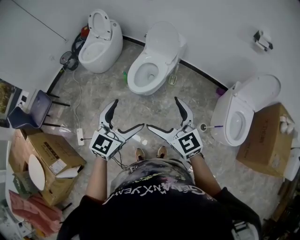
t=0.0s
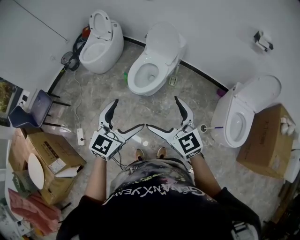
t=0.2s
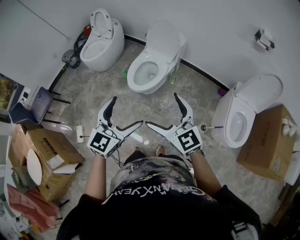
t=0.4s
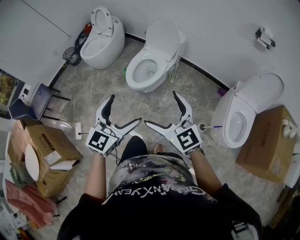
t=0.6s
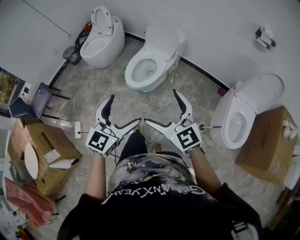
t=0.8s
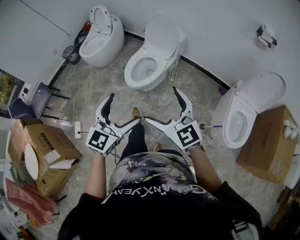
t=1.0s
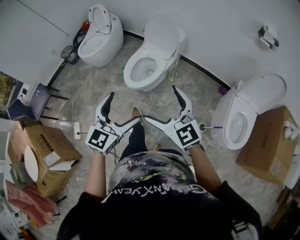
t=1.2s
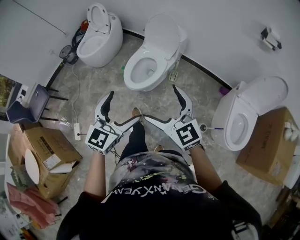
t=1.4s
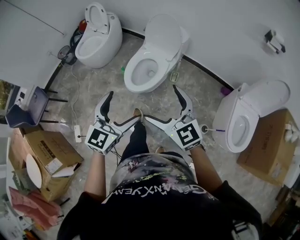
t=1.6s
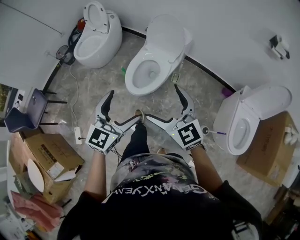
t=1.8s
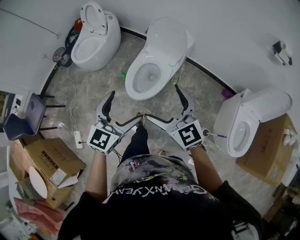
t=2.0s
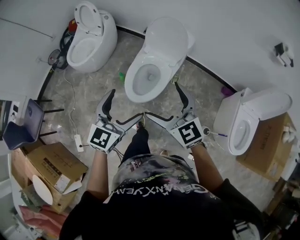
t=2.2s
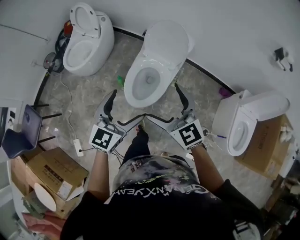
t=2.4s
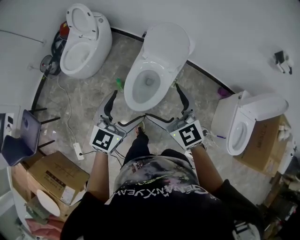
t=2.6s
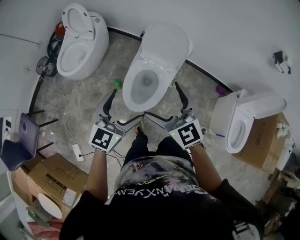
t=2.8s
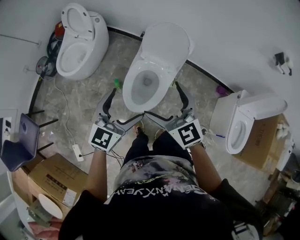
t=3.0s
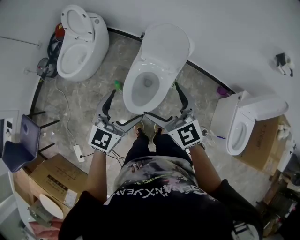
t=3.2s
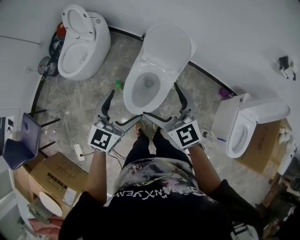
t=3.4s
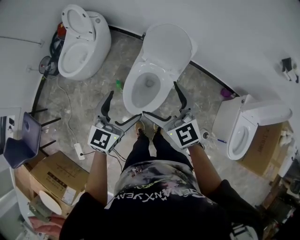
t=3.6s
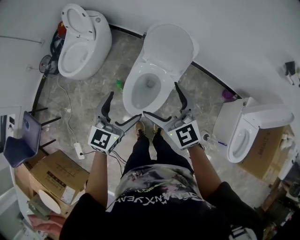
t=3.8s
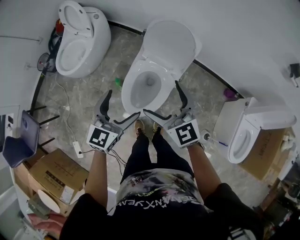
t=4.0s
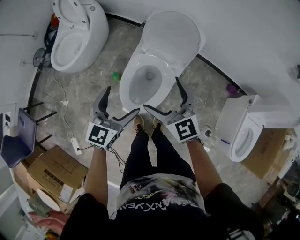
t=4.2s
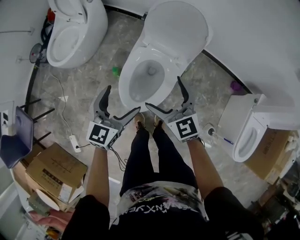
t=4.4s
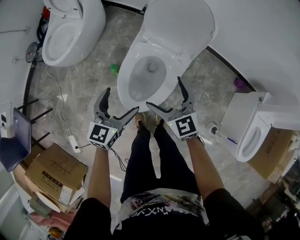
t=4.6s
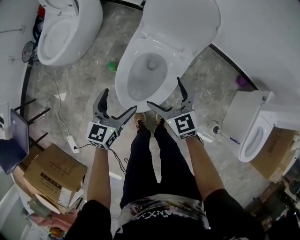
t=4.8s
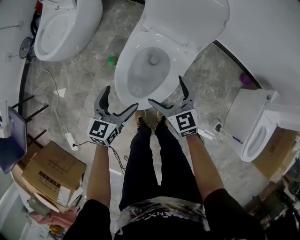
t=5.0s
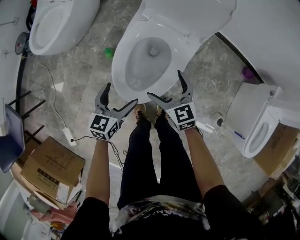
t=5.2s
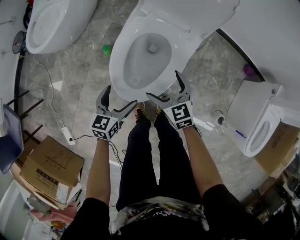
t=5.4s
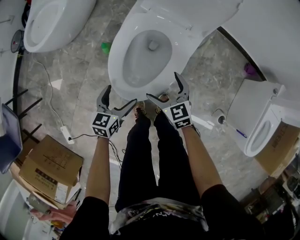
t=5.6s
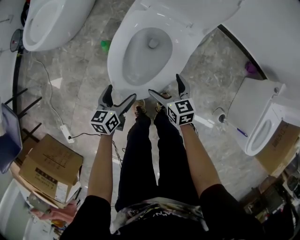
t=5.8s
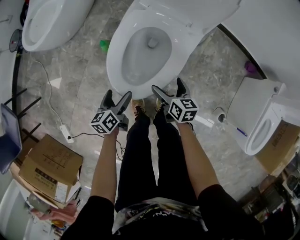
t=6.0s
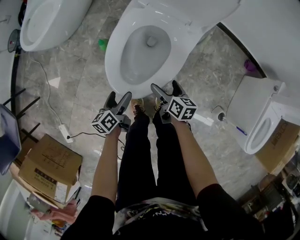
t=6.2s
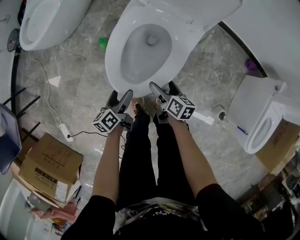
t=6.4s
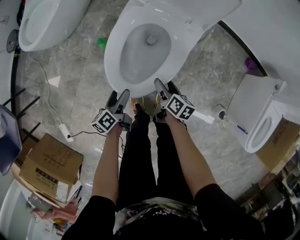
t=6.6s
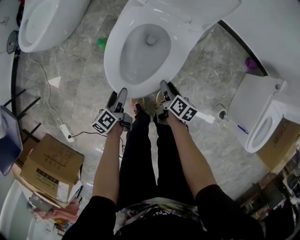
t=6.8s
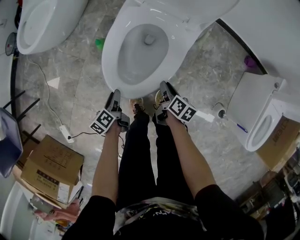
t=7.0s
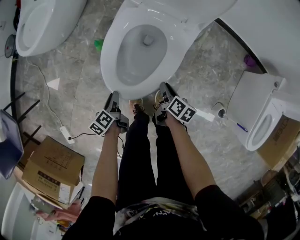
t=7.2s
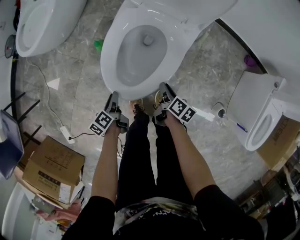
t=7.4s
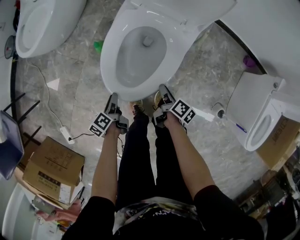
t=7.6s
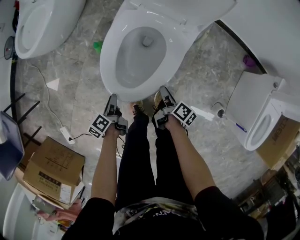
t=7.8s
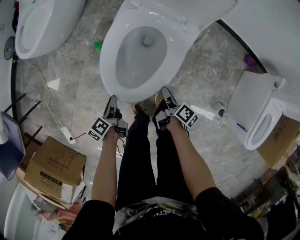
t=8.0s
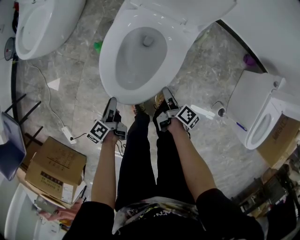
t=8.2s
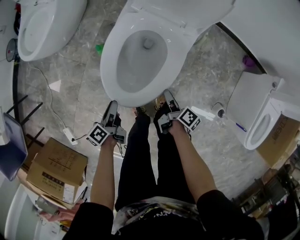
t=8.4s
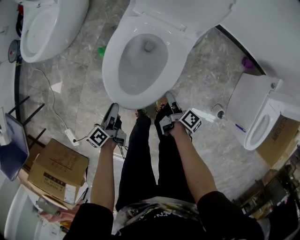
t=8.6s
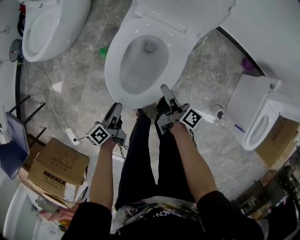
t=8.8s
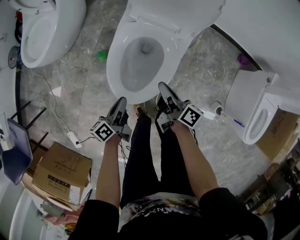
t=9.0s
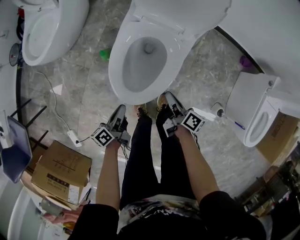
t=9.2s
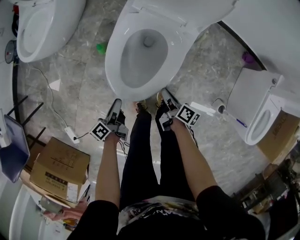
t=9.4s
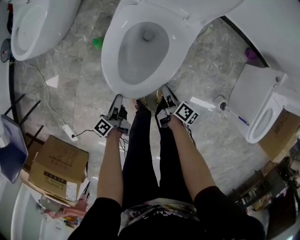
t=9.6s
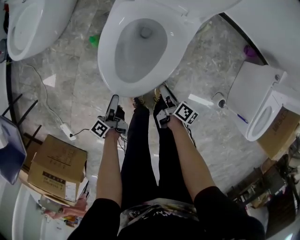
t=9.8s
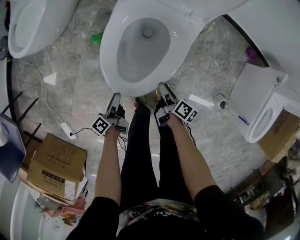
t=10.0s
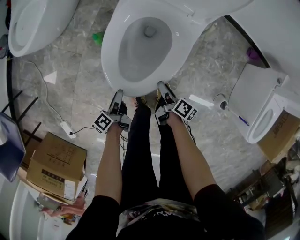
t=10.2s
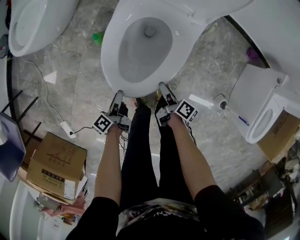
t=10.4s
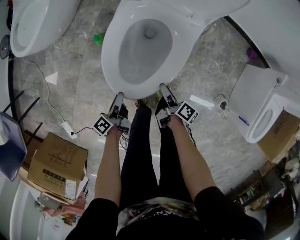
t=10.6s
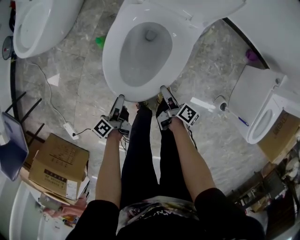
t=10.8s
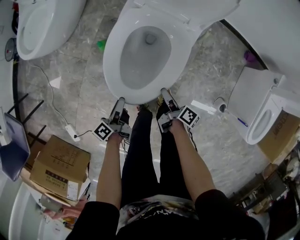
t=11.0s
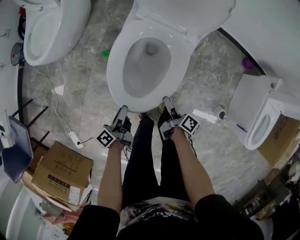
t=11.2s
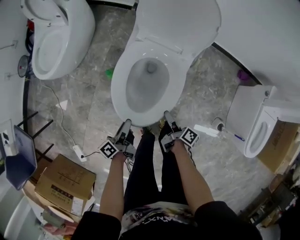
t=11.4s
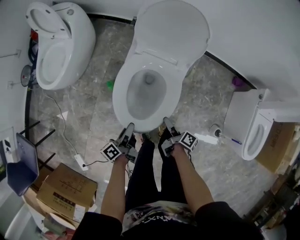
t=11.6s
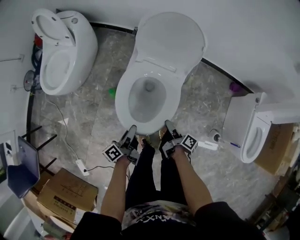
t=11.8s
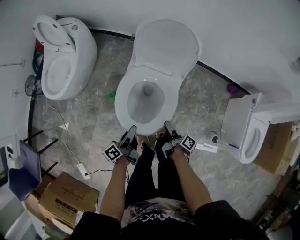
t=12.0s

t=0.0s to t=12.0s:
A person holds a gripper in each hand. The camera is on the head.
t=0.0s to t=1.6s: The two grippers go about 10 cm forward.
t=1.6s to t=3.0s: Both grippers move forward, about 30 cm.
t=3.0s to t=4.4s: Both grippers move downward and forward, about 20 cm.
t=4.4s to t=6.0s: Both grippers travel together downward, about 35 cm. The left gripper rotates around the line of its fingers by roughly 50 degrees, counterclockwise from behind, while the right gripper twists about 40 degrees clockwise, seen from behind.
t=6.0s to t=7.6s: The left gripper changes place by some 5 cm, rotates approximately 30 degrees, and closes up. The right gripper moves about 5 cm, twists about 50 degrees clockwise, seen from behind, and closes.
t=7.6s to t=9.0s: The grippers both shift upward by some 15 cm. The right gripper turns by some 30 degrees. The left gripper swivels roughly 30 degrees.
t=9.0s to t=10.4s: The right gripper travels downward and backward by some 20 cm, and turns by roughly 20 degrees, while the left gripper moves downward, some 15 cm, and rotates about 20 degrees.
t=10.4s to t=12.0s: The two grippers go about 20 cm upward. The left gripper turns by about 20 degrees.

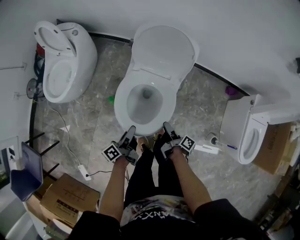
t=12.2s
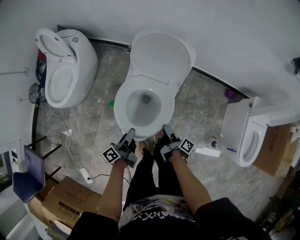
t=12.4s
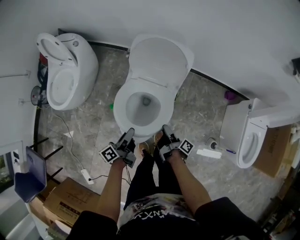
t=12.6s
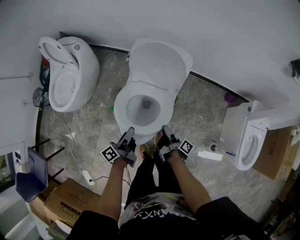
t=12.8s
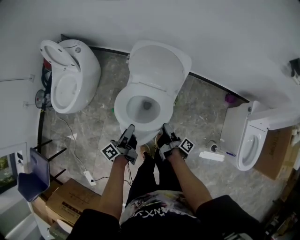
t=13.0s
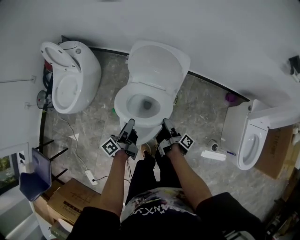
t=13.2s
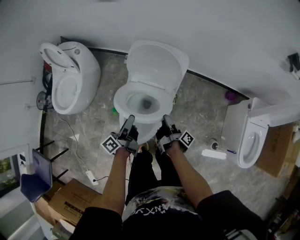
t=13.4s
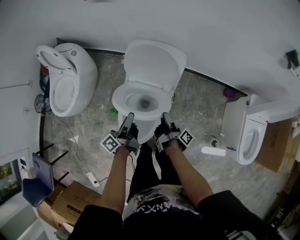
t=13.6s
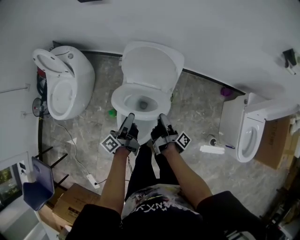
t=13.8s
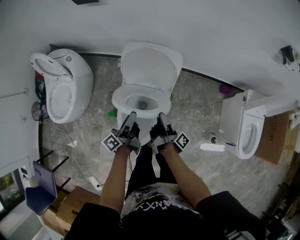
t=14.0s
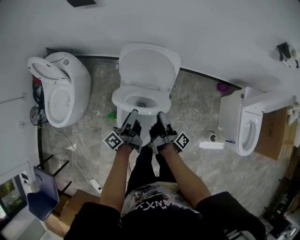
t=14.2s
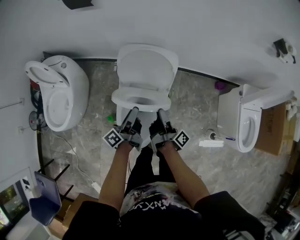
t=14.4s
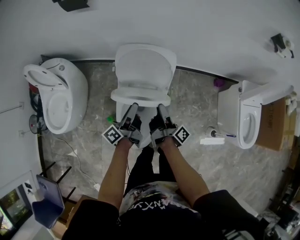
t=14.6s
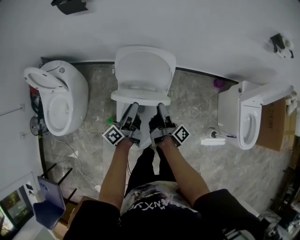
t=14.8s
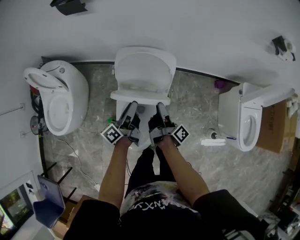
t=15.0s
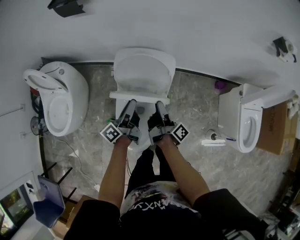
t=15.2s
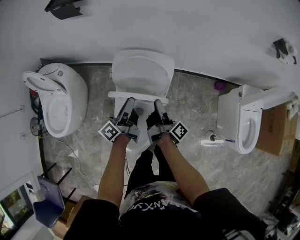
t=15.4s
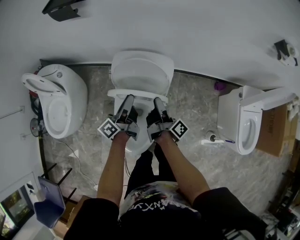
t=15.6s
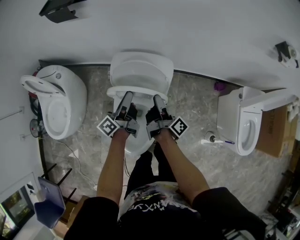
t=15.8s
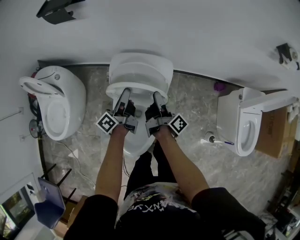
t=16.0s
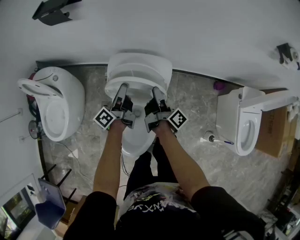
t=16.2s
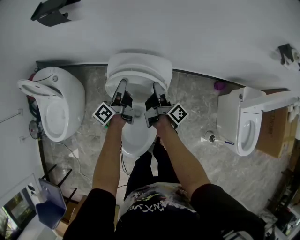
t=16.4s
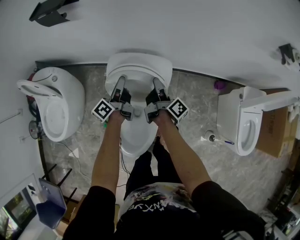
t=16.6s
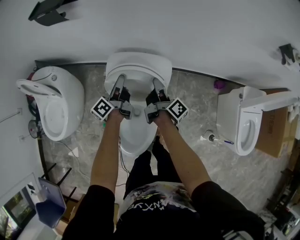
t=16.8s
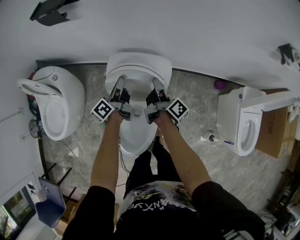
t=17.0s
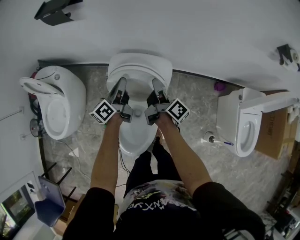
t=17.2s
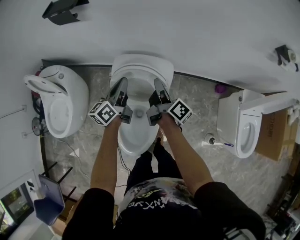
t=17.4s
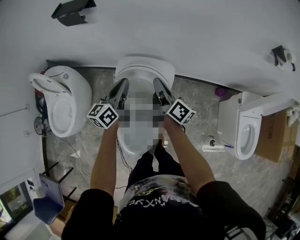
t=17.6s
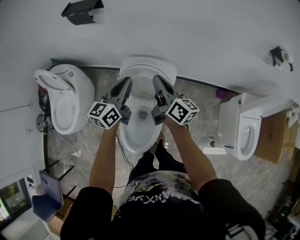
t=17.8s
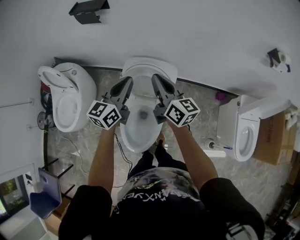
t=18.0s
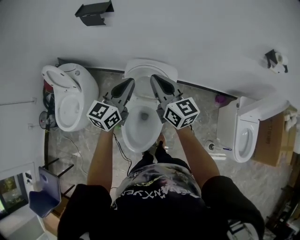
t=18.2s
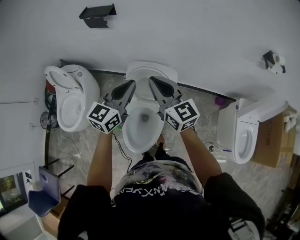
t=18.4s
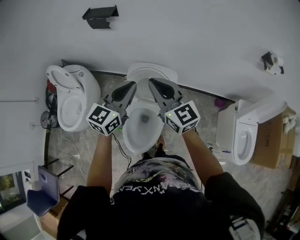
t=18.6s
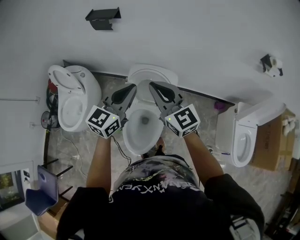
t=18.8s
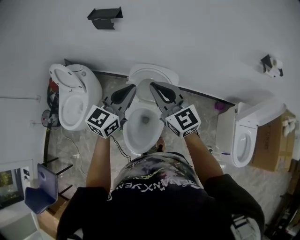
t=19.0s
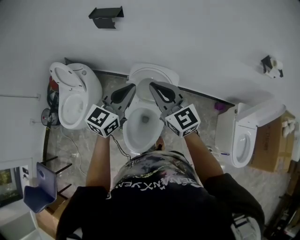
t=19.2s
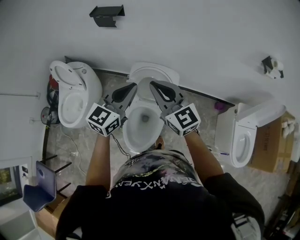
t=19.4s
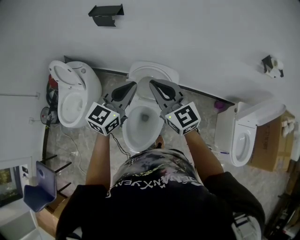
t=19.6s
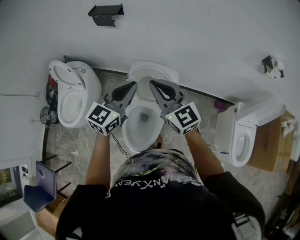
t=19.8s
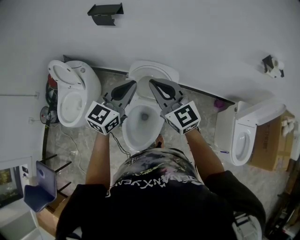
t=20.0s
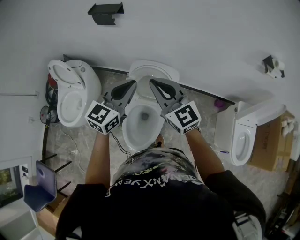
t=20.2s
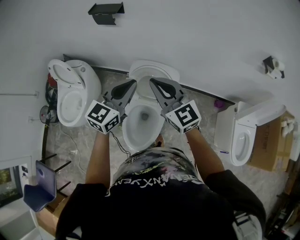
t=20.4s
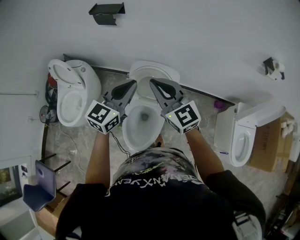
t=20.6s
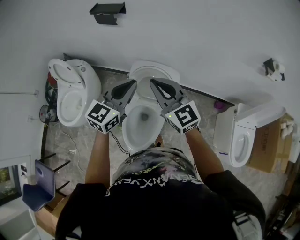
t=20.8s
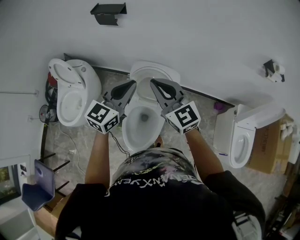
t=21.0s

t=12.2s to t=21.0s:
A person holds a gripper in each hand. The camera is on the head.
t=12.2s to t=13.6s: Both grippers move forward and upward, roughly 15 cm. The right gripper changes its angle by roughly 20 degrees.
t=13.6s to t=15.2s: The right gripper is displaced forward and upward by roughly 15 cm; the left gripper travels forward by roughly 10 cm.
t=15.2s to t=16.6s: Both grippers move forward, some 15 cm.
t=16.6s to t=18.0s: The left gripper is displaced upward and backward by about 25 cm, and twists roughly 50 degrees clockwise, seen from behind; the right gripper moves upward, roughly 20 cm, and rolls counterclockwise, seen from behind, by some 50 degrees.
t=18.0s to t=19.6s: The two grippers go about 15 cm upward and backward. The right gripper changes its angle by about 40 degrees.
t=19.6s to t=21.0s: The grippers make only small movements.

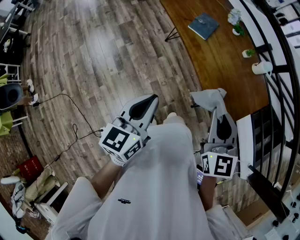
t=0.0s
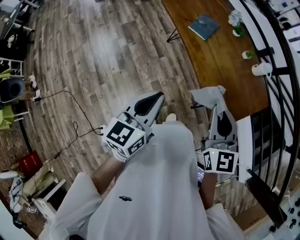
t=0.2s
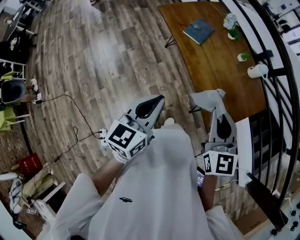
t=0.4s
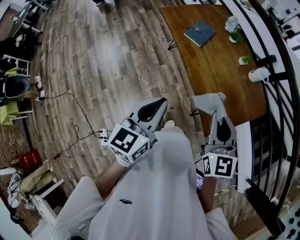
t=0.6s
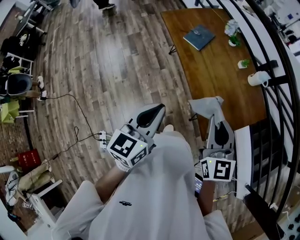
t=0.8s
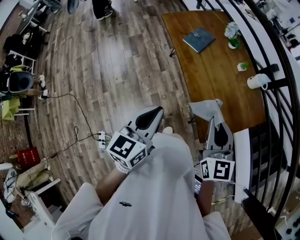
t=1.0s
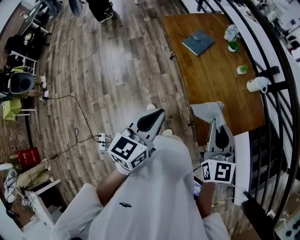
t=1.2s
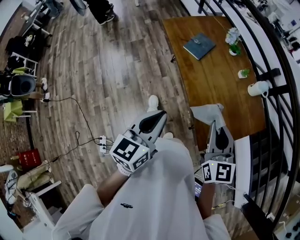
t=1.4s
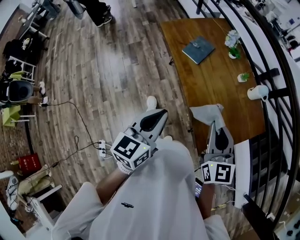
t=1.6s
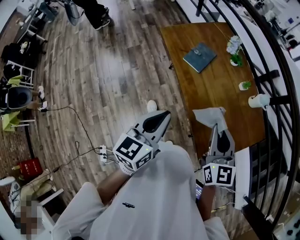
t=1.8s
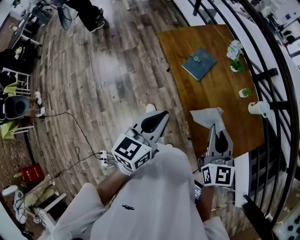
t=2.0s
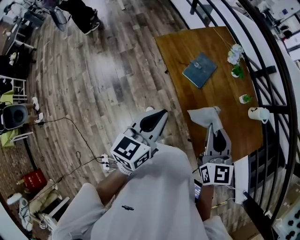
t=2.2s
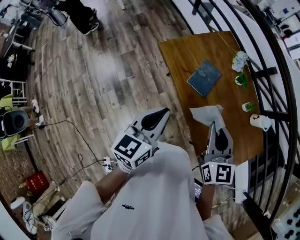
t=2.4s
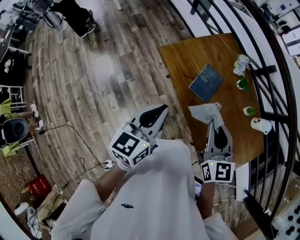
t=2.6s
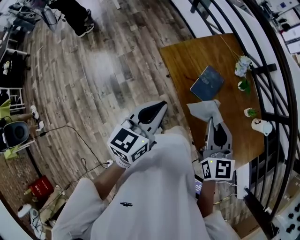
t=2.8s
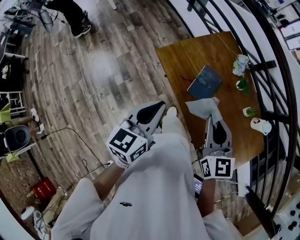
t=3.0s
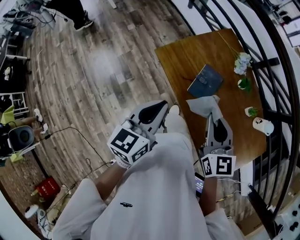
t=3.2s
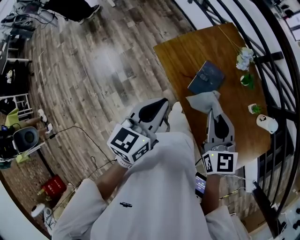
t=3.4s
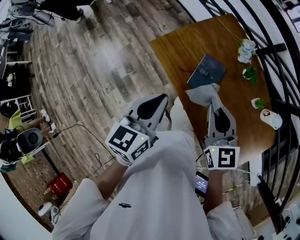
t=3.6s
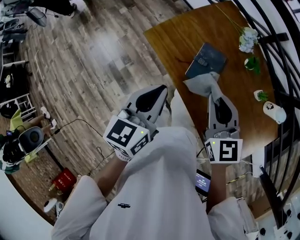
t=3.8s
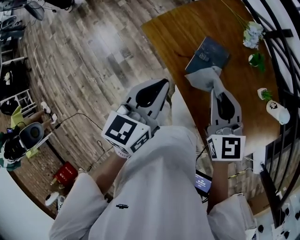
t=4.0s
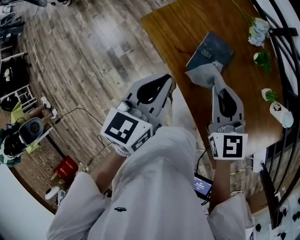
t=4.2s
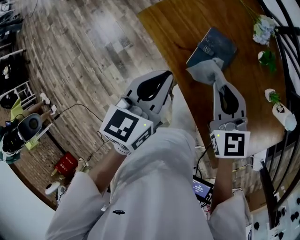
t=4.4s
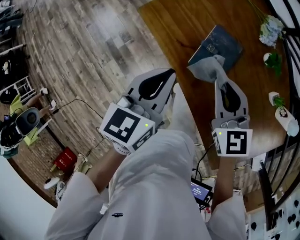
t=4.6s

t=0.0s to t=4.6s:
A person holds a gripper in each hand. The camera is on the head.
t=0.0s to t=1.6s: The two grippers go roughly 15 cm to the right and forward.
t=1.6s to t=3.0s: Both grippers travel together forward and to the left, approximately 35 cm.
t=3.0s to t=4.6s: The right gripper heads downward and forward, covering roughly 20 cm. Meanwhile the left gripper is displaced downward, forward and to the right by approximately 20 cm.
